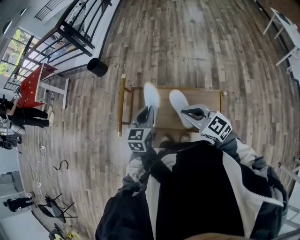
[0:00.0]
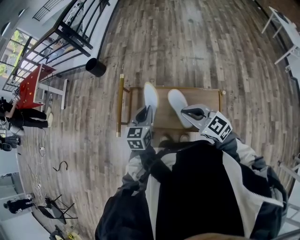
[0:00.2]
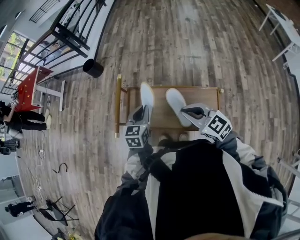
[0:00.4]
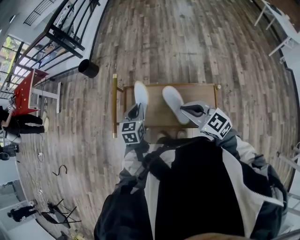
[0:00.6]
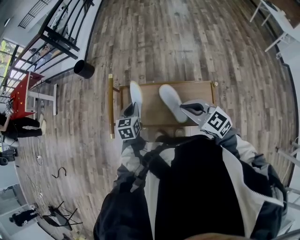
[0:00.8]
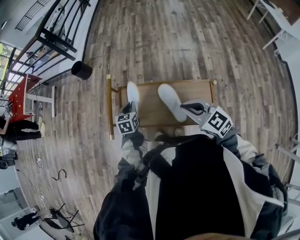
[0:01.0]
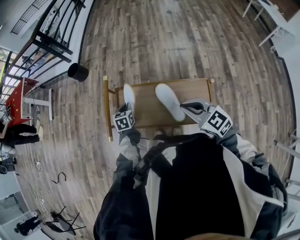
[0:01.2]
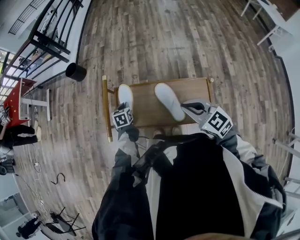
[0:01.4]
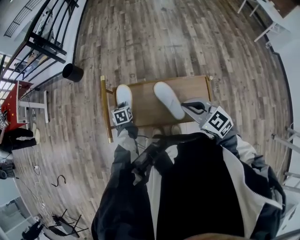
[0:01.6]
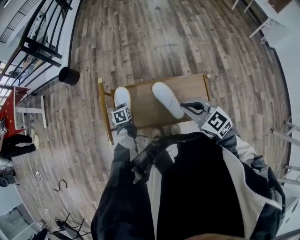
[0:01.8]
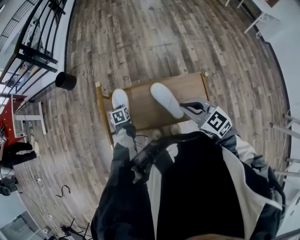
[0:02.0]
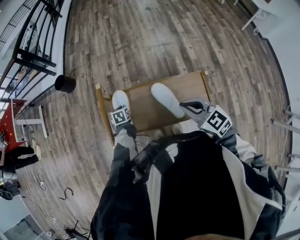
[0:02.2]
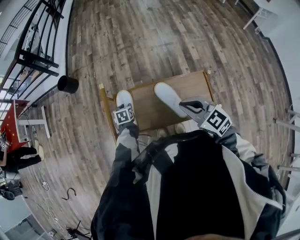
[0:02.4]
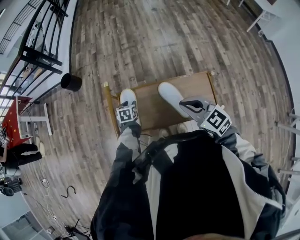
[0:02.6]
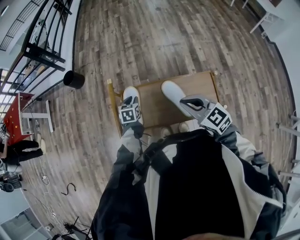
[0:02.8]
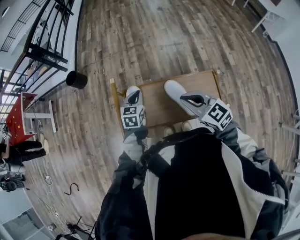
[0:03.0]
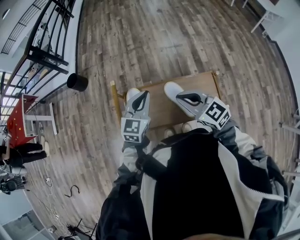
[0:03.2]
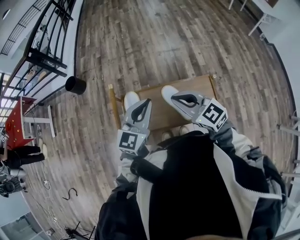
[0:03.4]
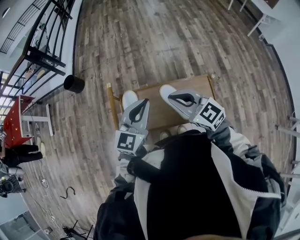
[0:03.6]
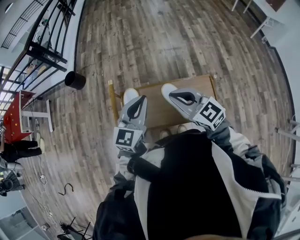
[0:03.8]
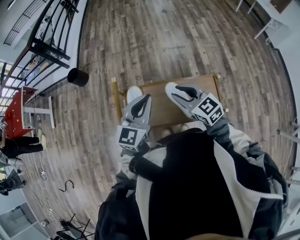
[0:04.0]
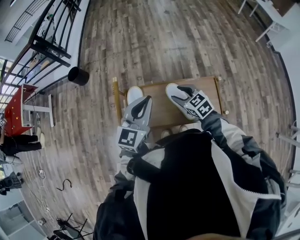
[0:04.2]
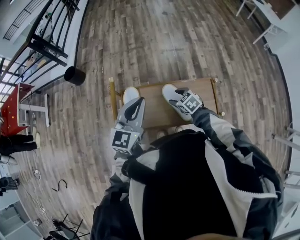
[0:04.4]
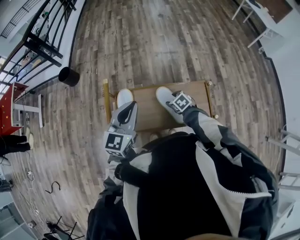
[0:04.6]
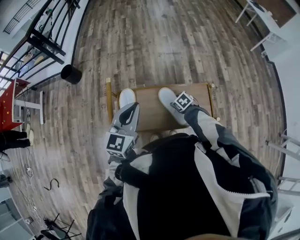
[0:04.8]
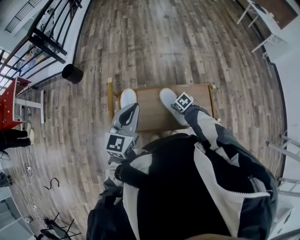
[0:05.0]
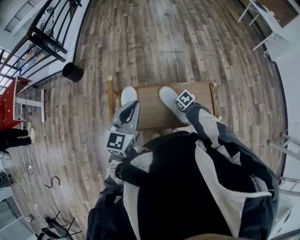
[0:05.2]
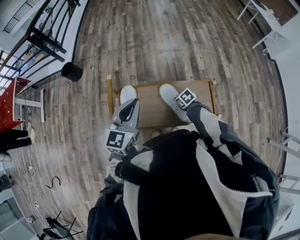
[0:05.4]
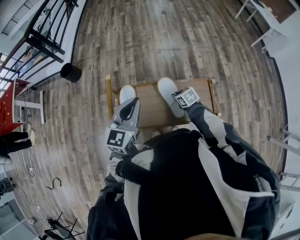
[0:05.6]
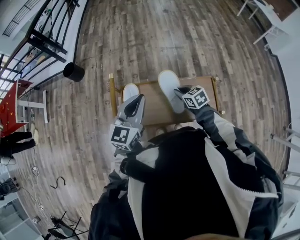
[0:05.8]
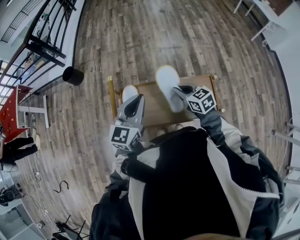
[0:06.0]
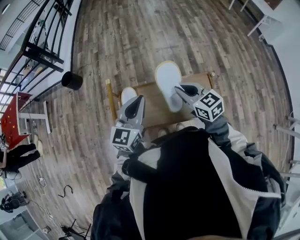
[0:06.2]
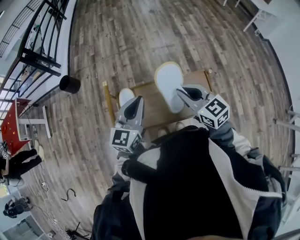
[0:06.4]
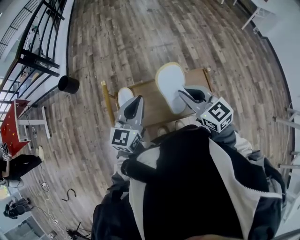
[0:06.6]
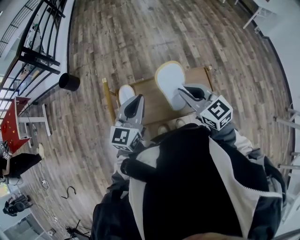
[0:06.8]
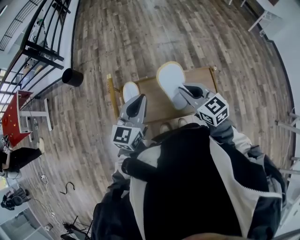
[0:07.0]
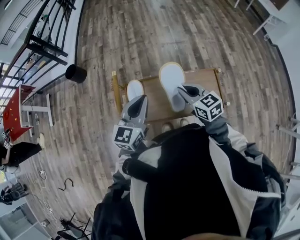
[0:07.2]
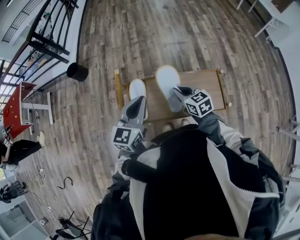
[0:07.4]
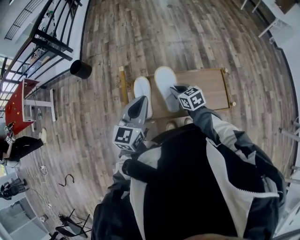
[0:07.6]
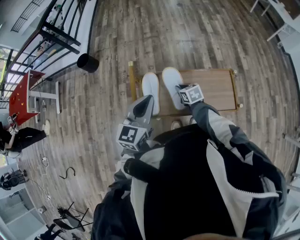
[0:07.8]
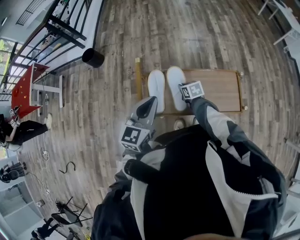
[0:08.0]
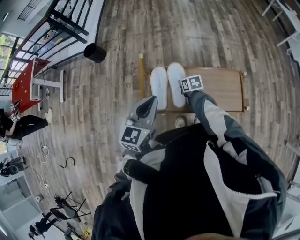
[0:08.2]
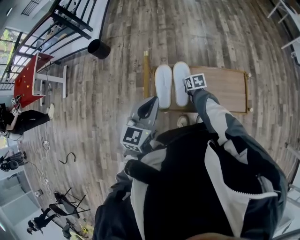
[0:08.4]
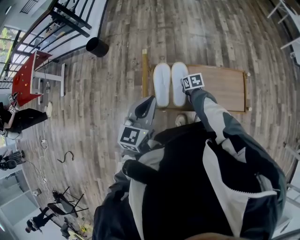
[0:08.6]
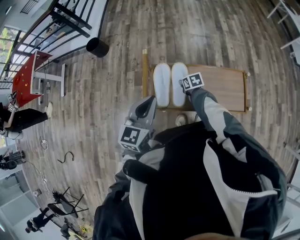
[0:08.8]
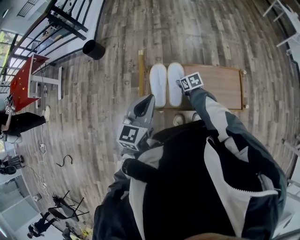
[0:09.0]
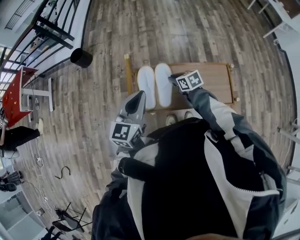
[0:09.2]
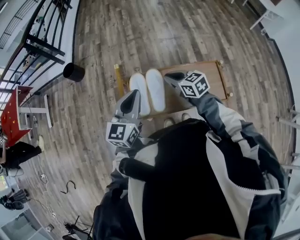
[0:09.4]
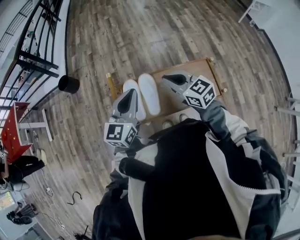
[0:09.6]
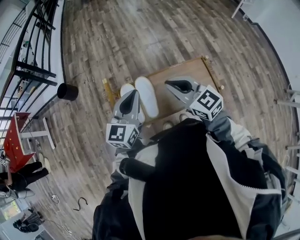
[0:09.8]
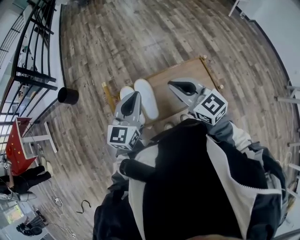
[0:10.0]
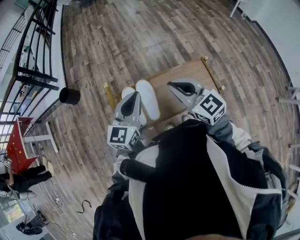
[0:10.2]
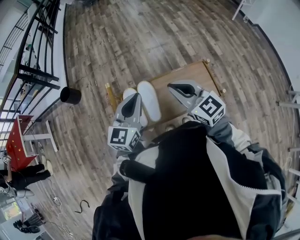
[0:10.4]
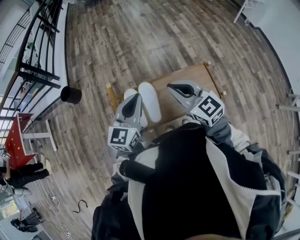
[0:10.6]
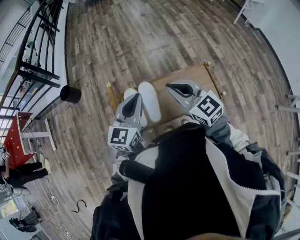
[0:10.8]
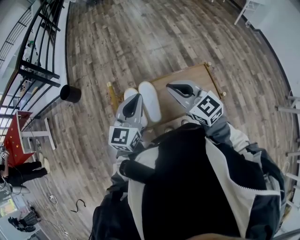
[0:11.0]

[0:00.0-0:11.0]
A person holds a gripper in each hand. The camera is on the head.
0:00.0 to 0:01.6: The left gripper shifts some 25 cm downward and forward, and tilts its fingers some 30 degrees downward.
0:01.6 to 0:03.2: The left gripper goes approximately 25 cm upward and to the right, tilts its fingers roughly 40 degrees upward, and opens, then closes once more. The right gripper is displaced to the left by some 5 cm.
0:03.2 to 0:04.8: The right gripper moves downward, approximately 30 cm, angles its fingers downward, by roughly 50 degrees, and opens, while the left gripper moves roughly 5 cm.
0:04.8 to 0:06.2: The right gripper shifts about 30 cm upward, points its fingers some 50 degrees further upward, and closes its fingers.
0:06.2 to 0:07.8: The right gripper shifts about 25 cm downward and to the left, and rotates approximately 30 degrees. The left gripper goes about 5 cm to the left.
0:07.8 to 0:09.4: The right gripper travels upward by approximately 15 cm.
0:09.4 to 0:11.0: The right gripper is displaced upward and backward by some 15 cm, and swivels approximately 30 degrees. Meanwhile the left gripper heads to the right, covering about 5 cm.

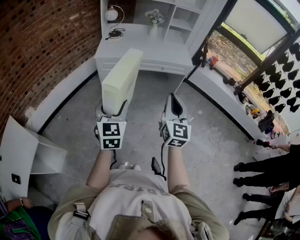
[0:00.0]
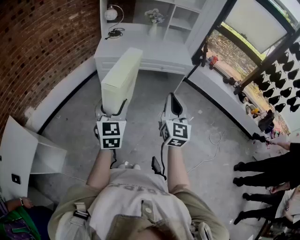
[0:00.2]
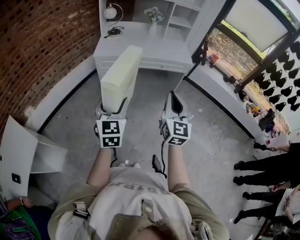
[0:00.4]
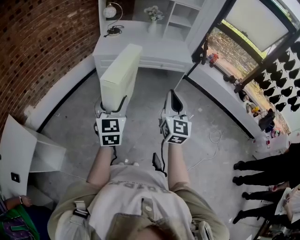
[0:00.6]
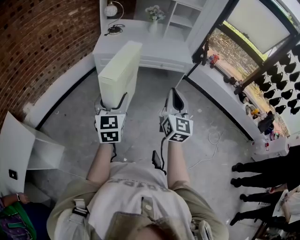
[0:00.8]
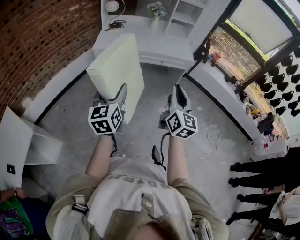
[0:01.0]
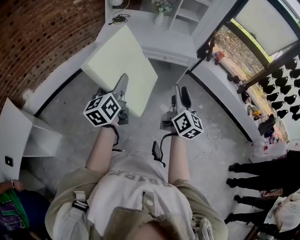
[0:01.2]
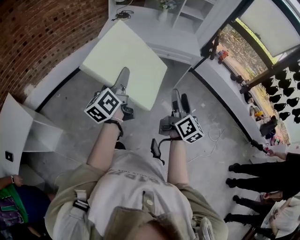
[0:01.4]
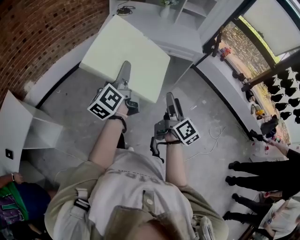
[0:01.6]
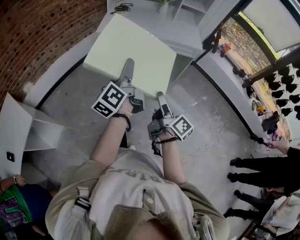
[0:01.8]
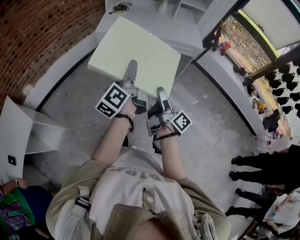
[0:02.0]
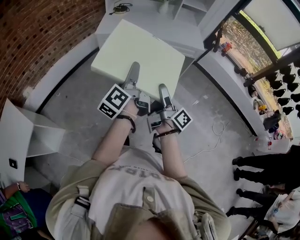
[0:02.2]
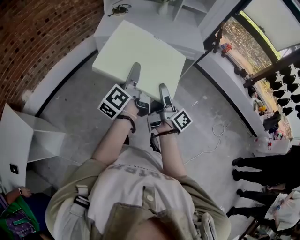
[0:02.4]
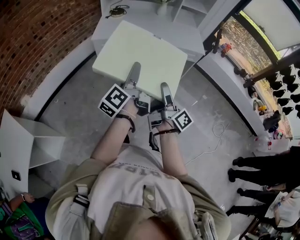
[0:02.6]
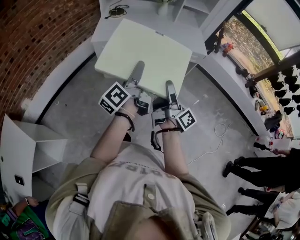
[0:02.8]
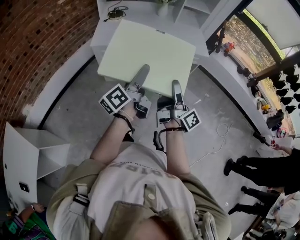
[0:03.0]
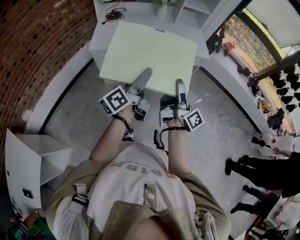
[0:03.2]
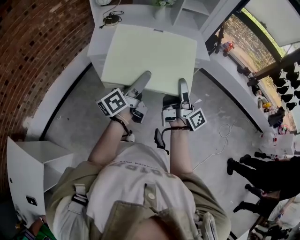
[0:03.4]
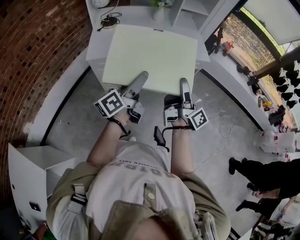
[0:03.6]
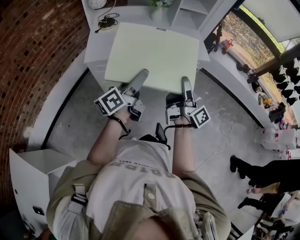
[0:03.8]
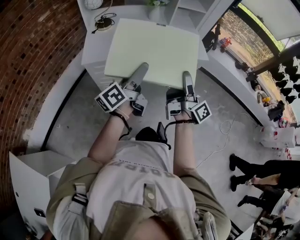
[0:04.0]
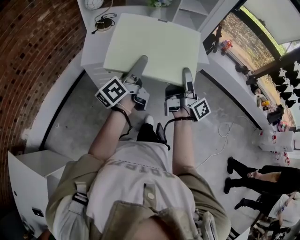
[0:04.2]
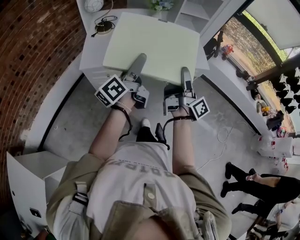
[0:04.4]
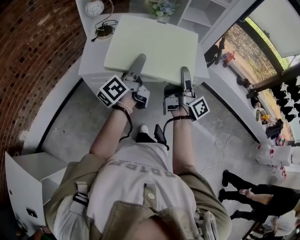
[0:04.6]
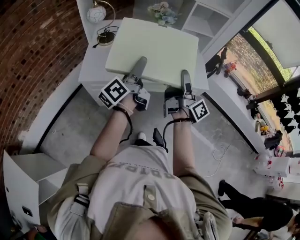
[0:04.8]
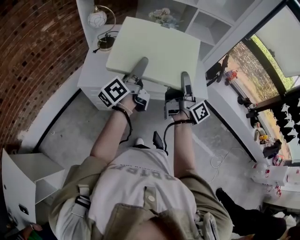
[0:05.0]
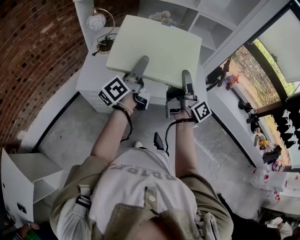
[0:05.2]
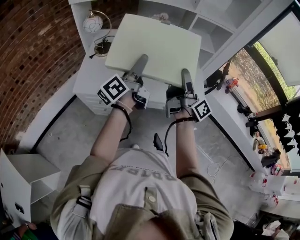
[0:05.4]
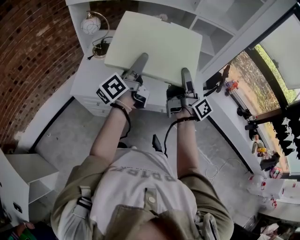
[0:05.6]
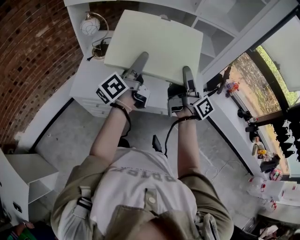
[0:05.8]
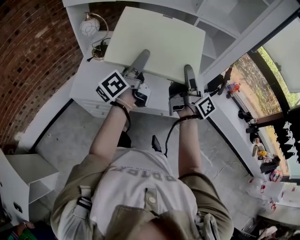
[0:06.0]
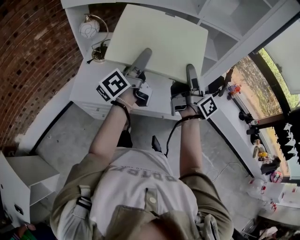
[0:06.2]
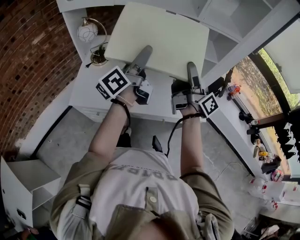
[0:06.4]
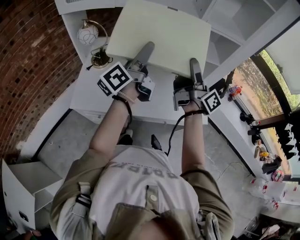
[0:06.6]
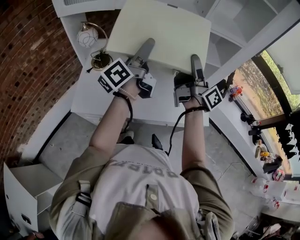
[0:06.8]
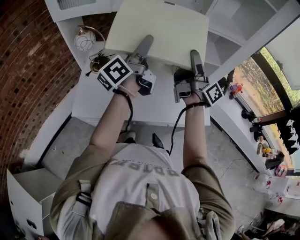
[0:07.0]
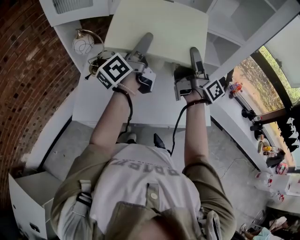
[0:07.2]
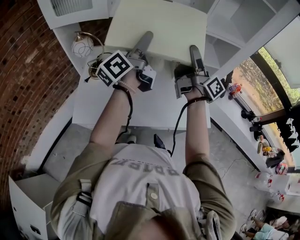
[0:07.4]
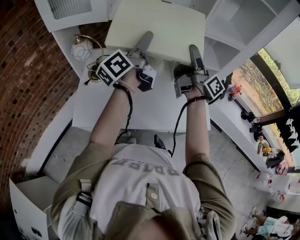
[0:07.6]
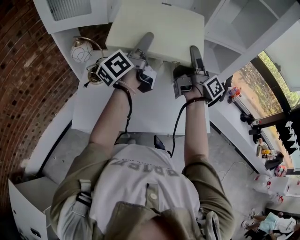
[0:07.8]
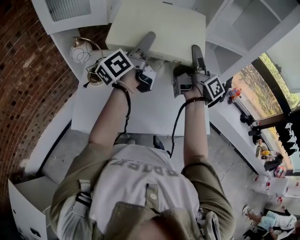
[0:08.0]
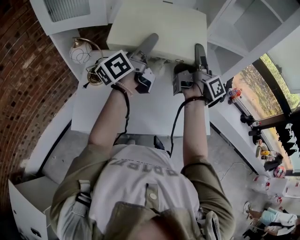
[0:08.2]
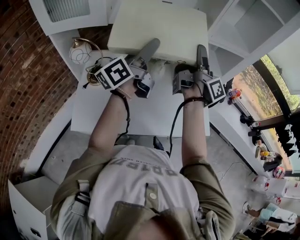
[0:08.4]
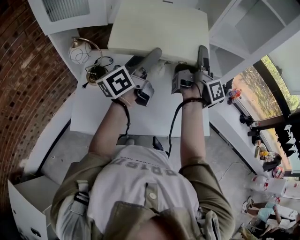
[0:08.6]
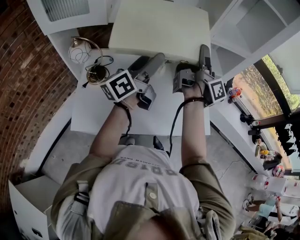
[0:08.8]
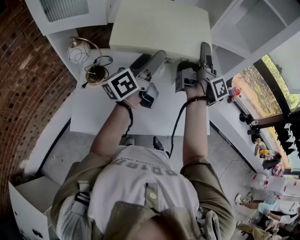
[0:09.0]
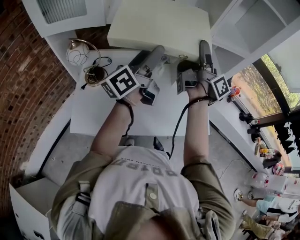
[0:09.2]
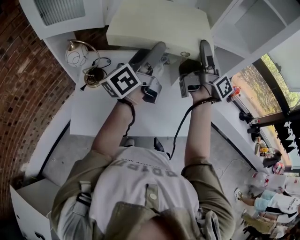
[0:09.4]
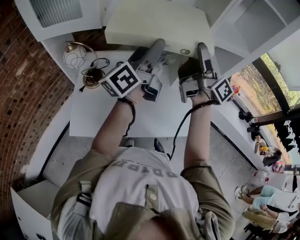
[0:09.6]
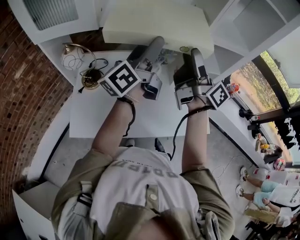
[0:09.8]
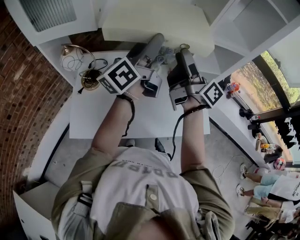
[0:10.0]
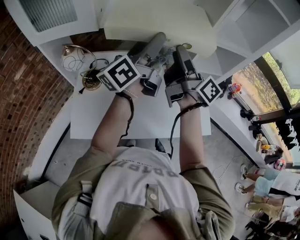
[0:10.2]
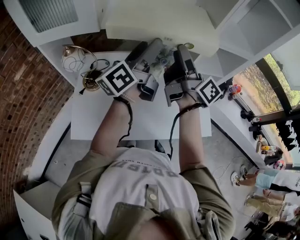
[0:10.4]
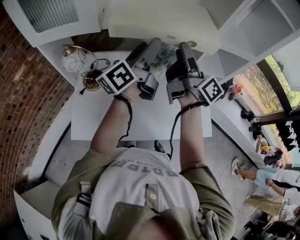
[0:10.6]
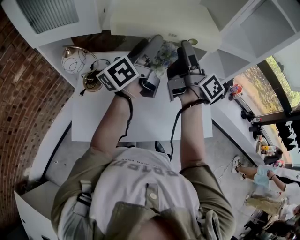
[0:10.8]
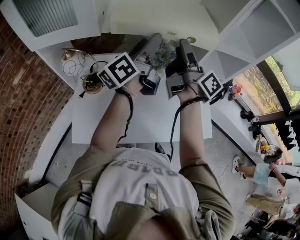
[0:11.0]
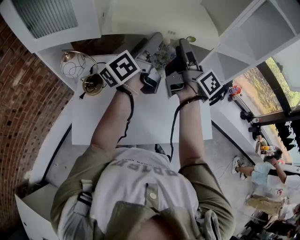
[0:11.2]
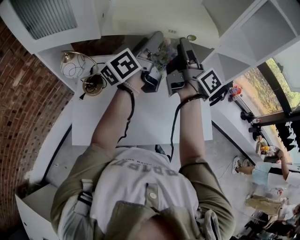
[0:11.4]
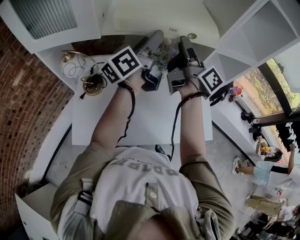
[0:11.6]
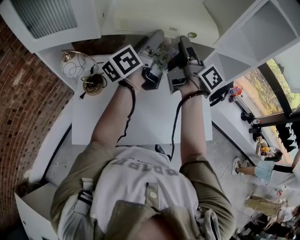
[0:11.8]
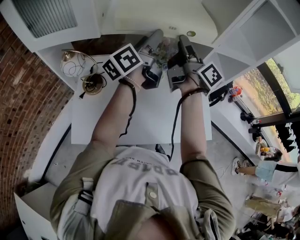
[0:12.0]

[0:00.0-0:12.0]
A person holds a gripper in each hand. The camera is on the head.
0:00.0 to 0:01.6: The left gripper goes approximately 5 cm forward, and twists some 60 degrees counterclockwise, seen from behind. Meanwhile the right gripper travels downward and to the right by approximately 10 cm, twists about 60 degrees clockwise, seen from behind, and opens.
0:01.6 to 0:03.0: Both grippers move forward, about 20 cm. The left gripper swivels roughly 30 degrees. The right gripper swivels approximately 30 degrees.
0:03.0 to 0:04.4: The two grippers go roughly 20 cm forward.
0:04.4 to 0:06.0: The grippers both shift forward by approximately 25 cm.
0:06.0 to 0:07.6: The grippers both shift forward by some 20 cm.
0:09.0 to 0:10.4: The left gripper travels forward by some 5 cm; the right gripper heads to the left, covering approximately 10 cm, and rotates about 20 degrees.
0:10.4 to 0:12.0: Both grippers move forward, some 10 cm.

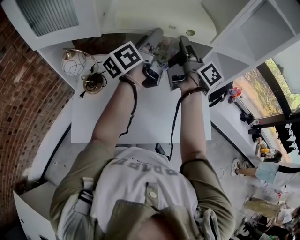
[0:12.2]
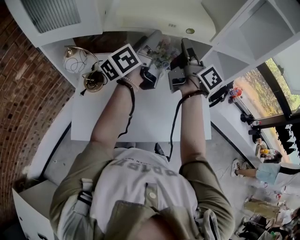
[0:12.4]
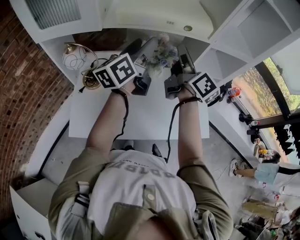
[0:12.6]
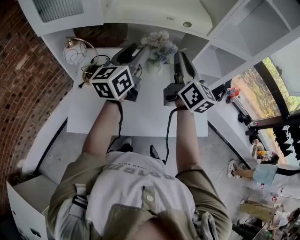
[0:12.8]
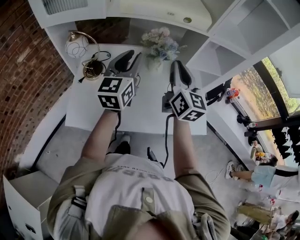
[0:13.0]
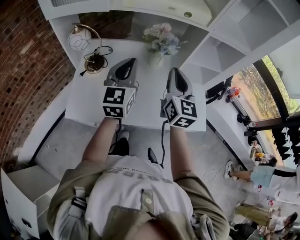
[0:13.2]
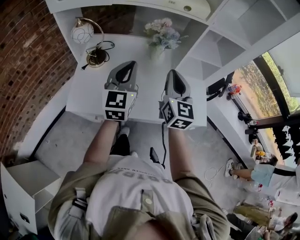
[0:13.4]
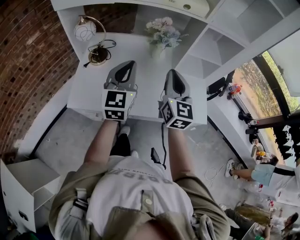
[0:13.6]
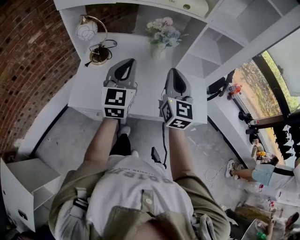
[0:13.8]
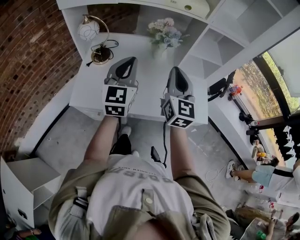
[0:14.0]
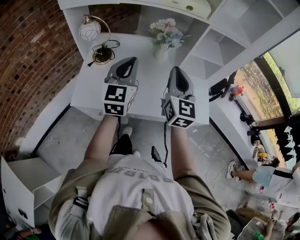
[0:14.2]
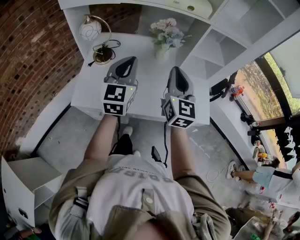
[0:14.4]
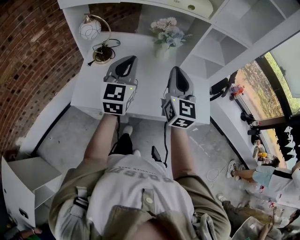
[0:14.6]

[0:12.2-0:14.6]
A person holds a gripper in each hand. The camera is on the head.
0:12.2 to 0:13.4: Both grippers travel together backward, approximately 25 cm. The left gripper rolls clockwise, seen from behind, by some 60 degrees, and closes, while the right gripper rotates around the line of its fingers by some 70 degrees, counterclockwise from behind.
0:13.4 to 0:14.6: The grippers make only small movements.
